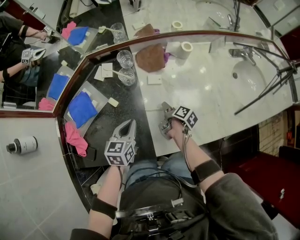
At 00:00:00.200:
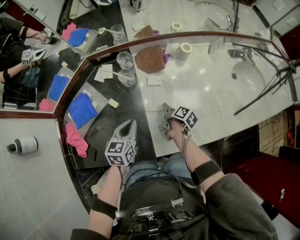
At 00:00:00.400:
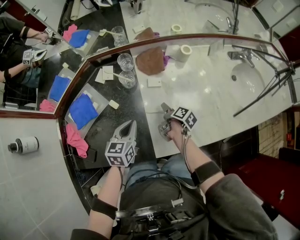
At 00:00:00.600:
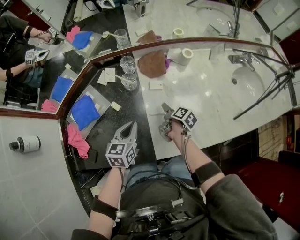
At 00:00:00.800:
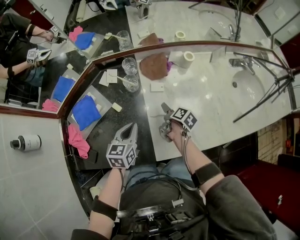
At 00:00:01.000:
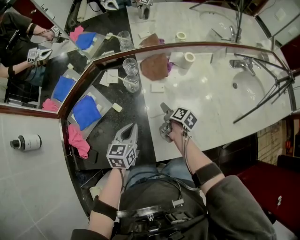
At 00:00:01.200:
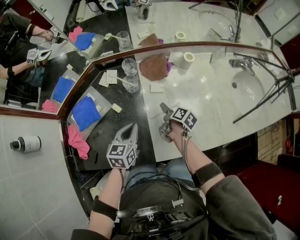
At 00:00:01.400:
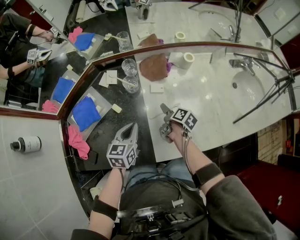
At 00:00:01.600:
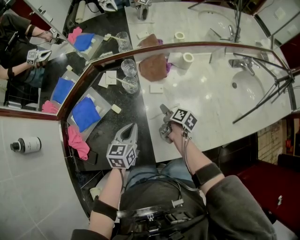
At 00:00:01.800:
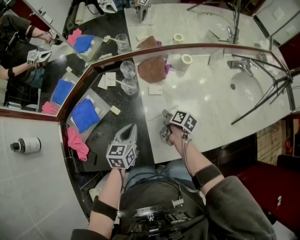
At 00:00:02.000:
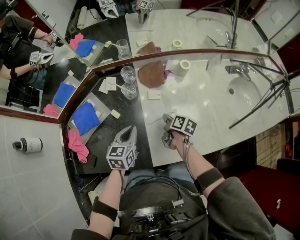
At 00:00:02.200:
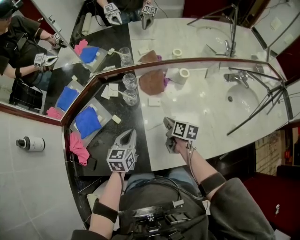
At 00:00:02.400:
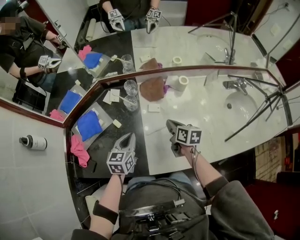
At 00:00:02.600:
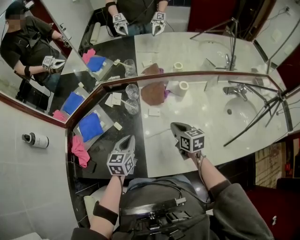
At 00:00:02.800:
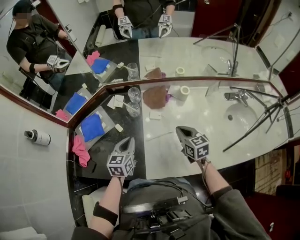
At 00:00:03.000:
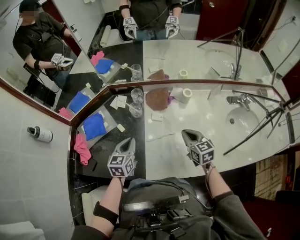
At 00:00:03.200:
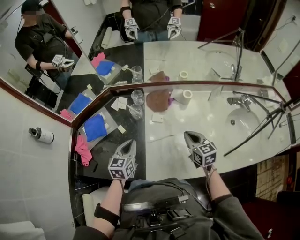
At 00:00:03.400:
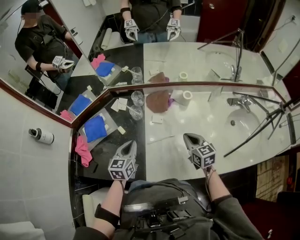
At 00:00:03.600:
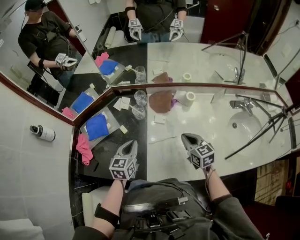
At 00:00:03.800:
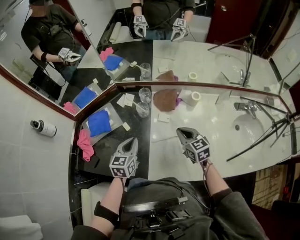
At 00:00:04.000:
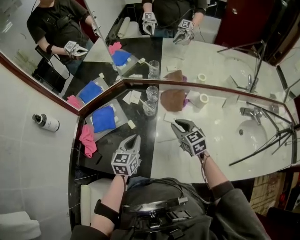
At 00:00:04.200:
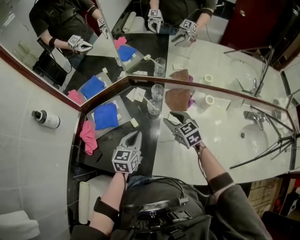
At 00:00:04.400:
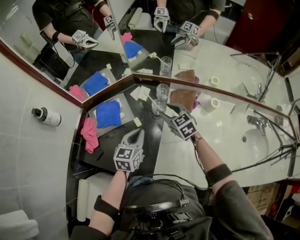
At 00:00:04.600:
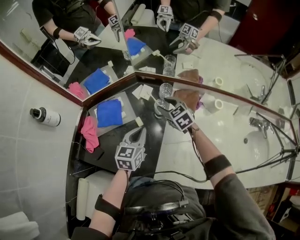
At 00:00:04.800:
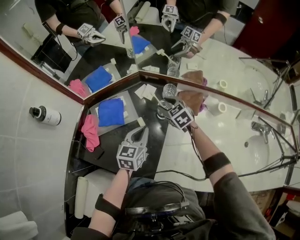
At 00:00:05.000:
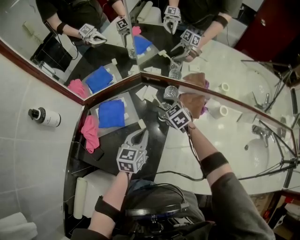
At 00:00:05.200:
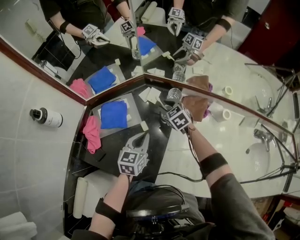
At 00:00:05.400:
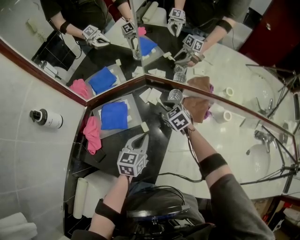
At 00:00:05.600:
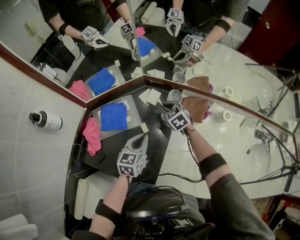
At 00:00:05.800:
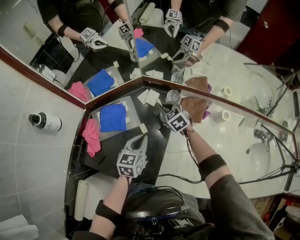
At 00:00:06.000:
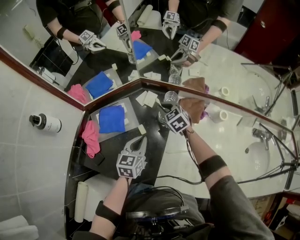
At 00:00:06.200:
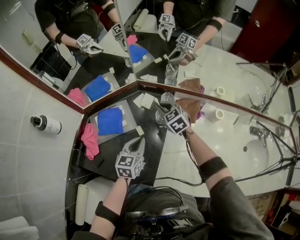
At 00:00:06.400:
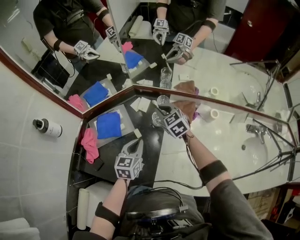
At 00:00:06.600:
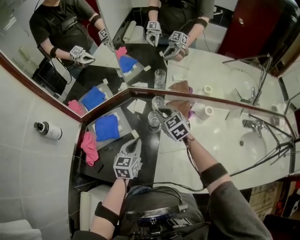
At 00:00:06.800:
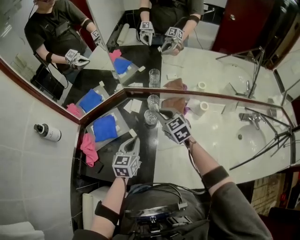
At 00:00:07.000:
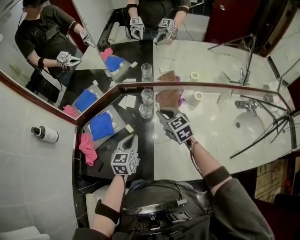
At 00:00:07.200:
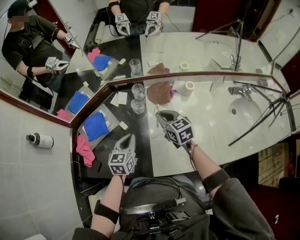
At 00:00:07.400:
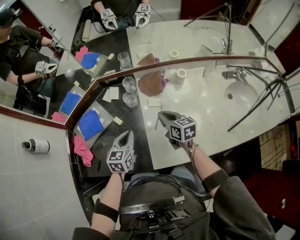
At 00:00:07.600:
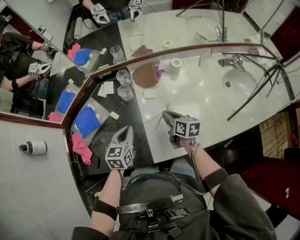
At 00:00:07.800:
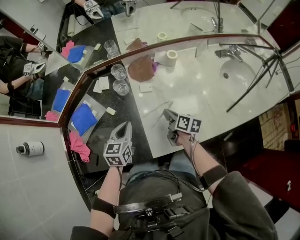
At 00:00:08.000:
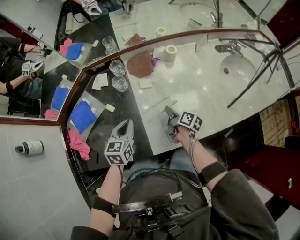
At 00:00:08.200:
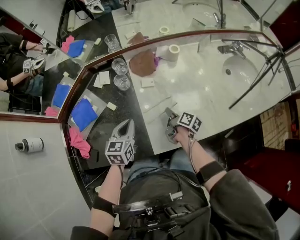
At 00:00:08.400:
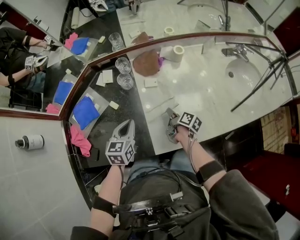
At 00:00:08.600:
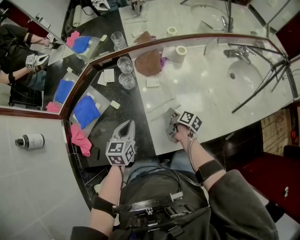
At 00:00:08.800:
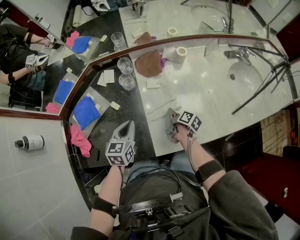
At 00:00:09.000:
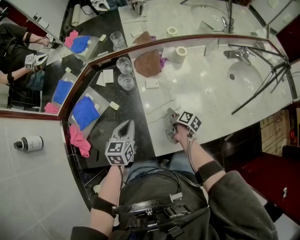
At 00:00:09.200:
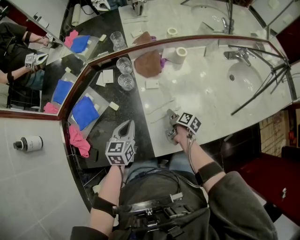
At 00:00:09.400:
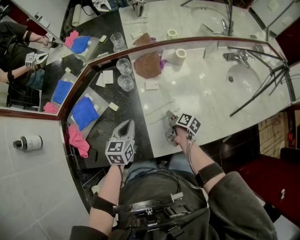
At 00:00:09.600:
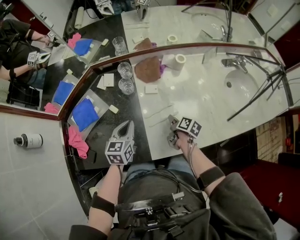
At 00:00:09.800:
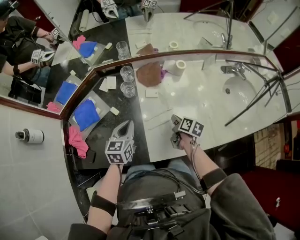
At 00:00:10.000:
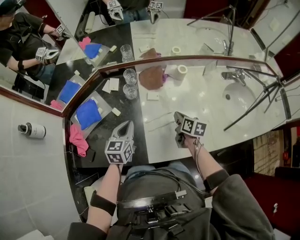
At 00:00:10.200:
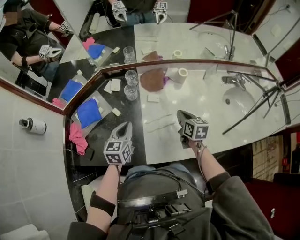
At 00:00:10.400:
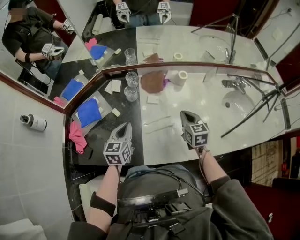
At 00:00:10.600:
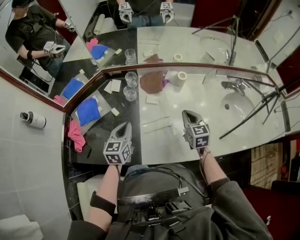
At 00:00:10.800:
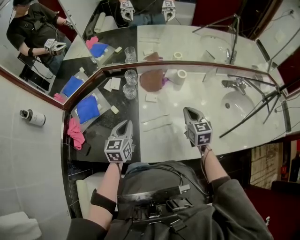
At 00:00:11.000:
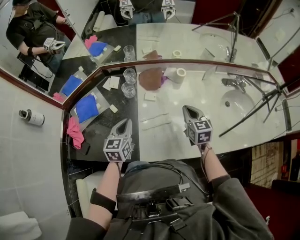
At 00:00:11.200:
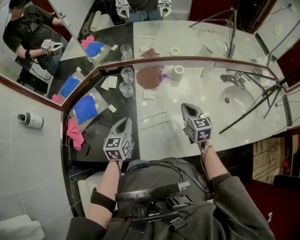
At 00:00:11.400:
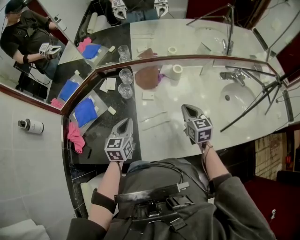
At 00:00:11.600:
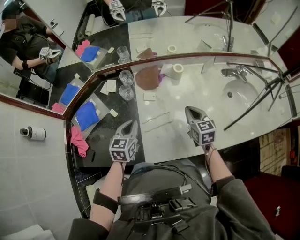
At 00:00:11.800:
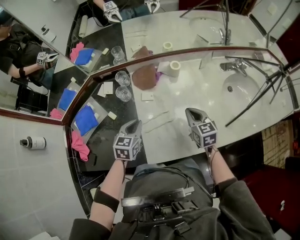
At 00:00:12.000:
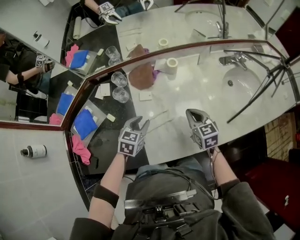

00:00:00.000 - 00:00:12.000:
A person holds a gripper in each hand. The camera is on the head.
00:00:00.000 - 00:00:01.600: The grippers stay close to where they were, moving slightly.
00:00:01.600 - 00:00:03.000: The left gripper is displaced upward by some 5 cm, while the right gripper shifts approximately 20 cm upward and to the right, rolls counterclockwise, seen from behind, by approximately 70 degrees, and closes.
00:00:03.000 - 00:00:04.400: The right gripper shifts approximately 25 cm to the left and forward, changes its angle by roughly 30 degrees, and opens its fingers. The left gripper heads forward and to the left, covering about 5 cm.
00:00:04.400 - 00:00:06.000: The right gripper travels forward by about 10 cm, and closes.
00:00:06.000 - 00:00:07.600: The right gripper heads backward and to the right, covering roughly 30 cm, and rolls clockwise, seen from behind, by about 60 degrees, while the left gripper heads backward and to the right, covering about 10 cm, and turns by approximately 20 degrees.
00:00:07.600 - 00:00:09.000: The right gripper goes roughly 15 cm downward, rolls clockwise, seen from behind, by approximately 40 degrees, and opens its fingers.
00:00:09.000 - 00:00:10.400: The left gripper goes roughly 5 cm upward. Meanwhile the right gripper moves upward, about 20 cm, rolls counterclockwise, seen from behind, by approximately 70 degrees, and closes its fingers.
00:00:10.400 - 00:00:12.000: The right gripper travels to the right by about 5 cm. The left gripper moves to the right and downward, roughly 15 cm, changes its angle by some 30 degrees, and opens.

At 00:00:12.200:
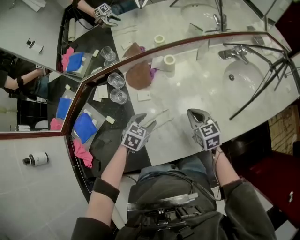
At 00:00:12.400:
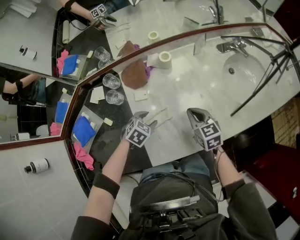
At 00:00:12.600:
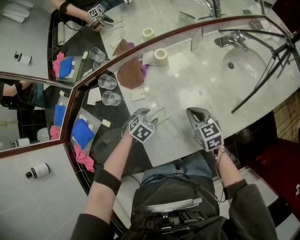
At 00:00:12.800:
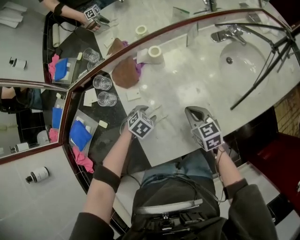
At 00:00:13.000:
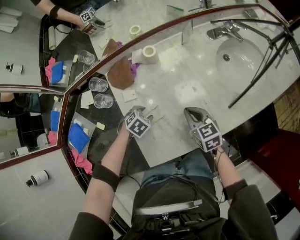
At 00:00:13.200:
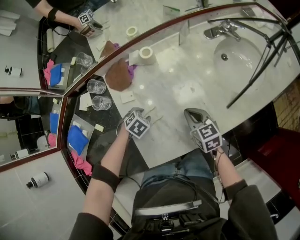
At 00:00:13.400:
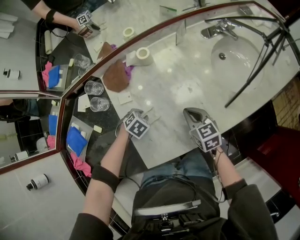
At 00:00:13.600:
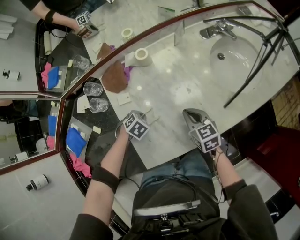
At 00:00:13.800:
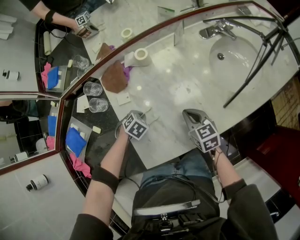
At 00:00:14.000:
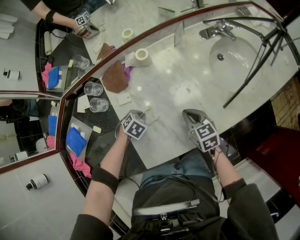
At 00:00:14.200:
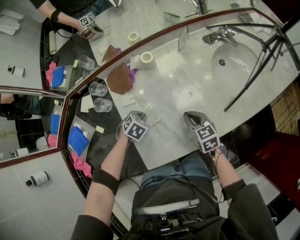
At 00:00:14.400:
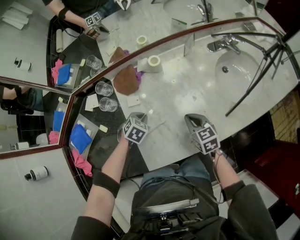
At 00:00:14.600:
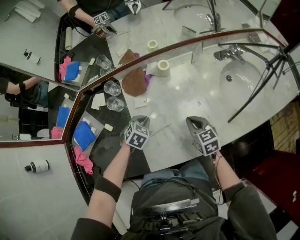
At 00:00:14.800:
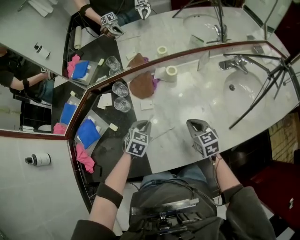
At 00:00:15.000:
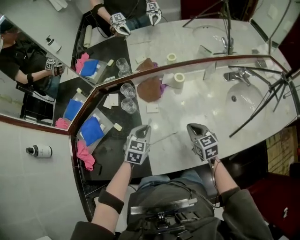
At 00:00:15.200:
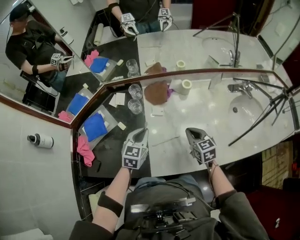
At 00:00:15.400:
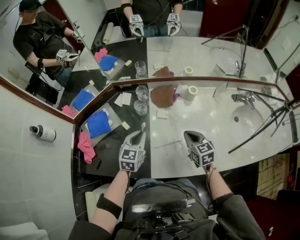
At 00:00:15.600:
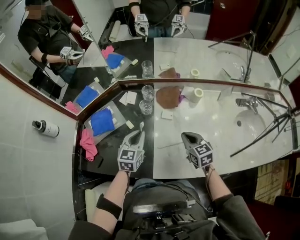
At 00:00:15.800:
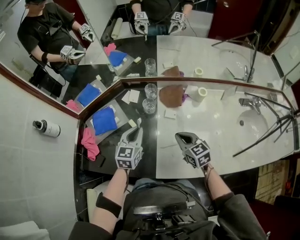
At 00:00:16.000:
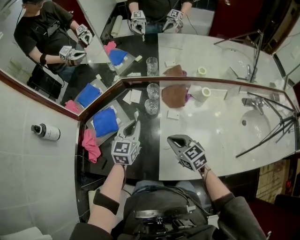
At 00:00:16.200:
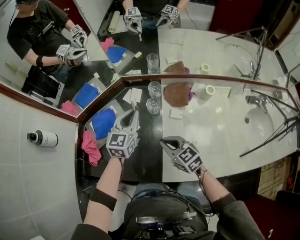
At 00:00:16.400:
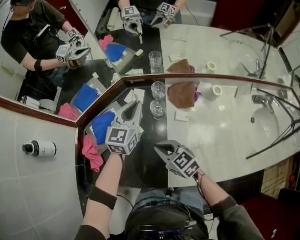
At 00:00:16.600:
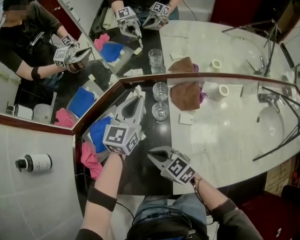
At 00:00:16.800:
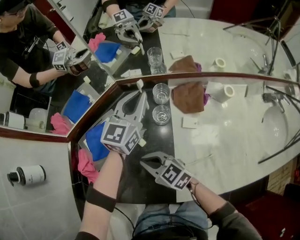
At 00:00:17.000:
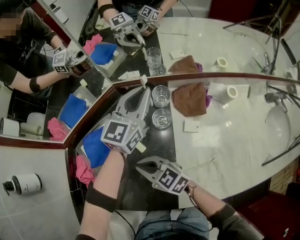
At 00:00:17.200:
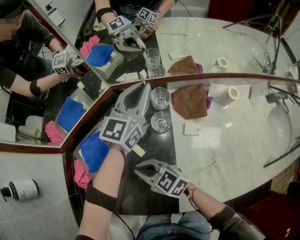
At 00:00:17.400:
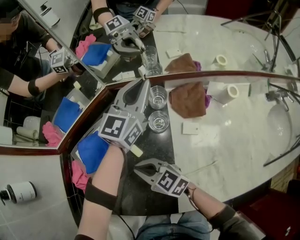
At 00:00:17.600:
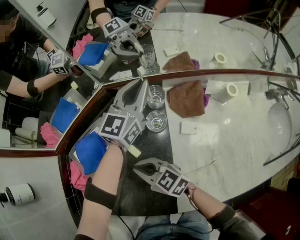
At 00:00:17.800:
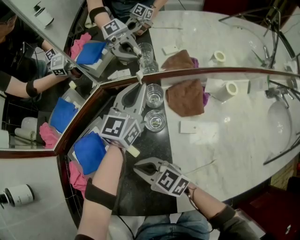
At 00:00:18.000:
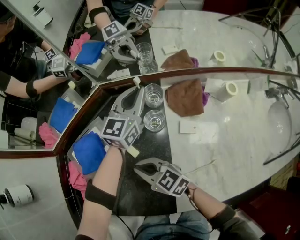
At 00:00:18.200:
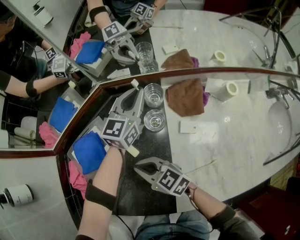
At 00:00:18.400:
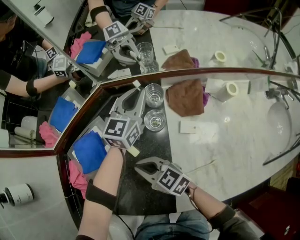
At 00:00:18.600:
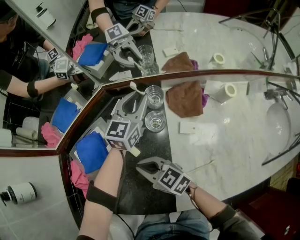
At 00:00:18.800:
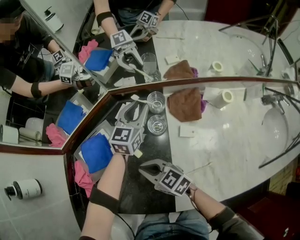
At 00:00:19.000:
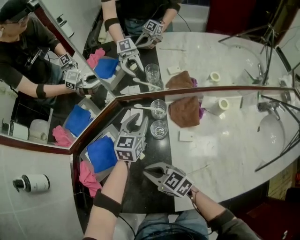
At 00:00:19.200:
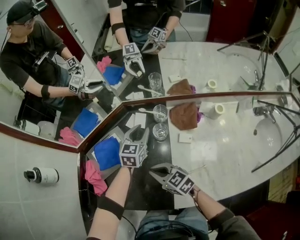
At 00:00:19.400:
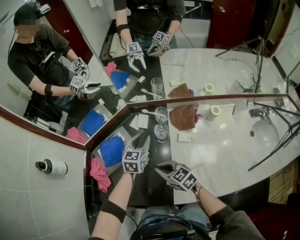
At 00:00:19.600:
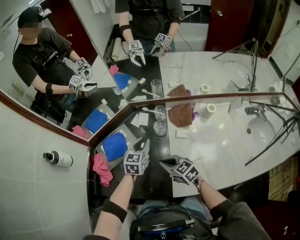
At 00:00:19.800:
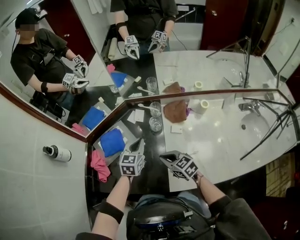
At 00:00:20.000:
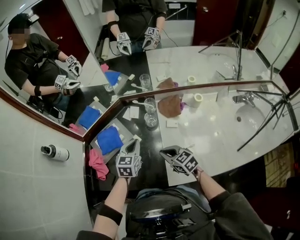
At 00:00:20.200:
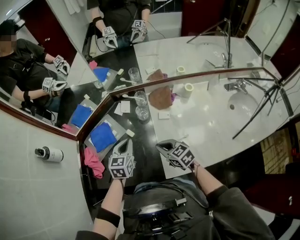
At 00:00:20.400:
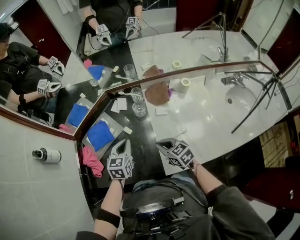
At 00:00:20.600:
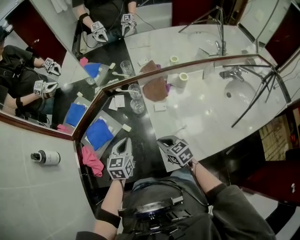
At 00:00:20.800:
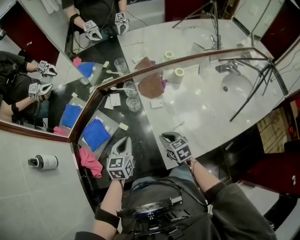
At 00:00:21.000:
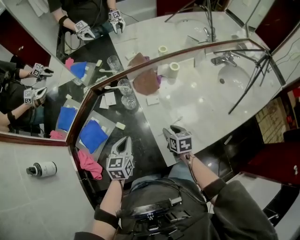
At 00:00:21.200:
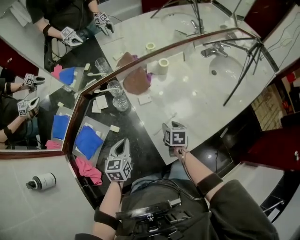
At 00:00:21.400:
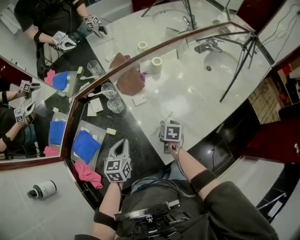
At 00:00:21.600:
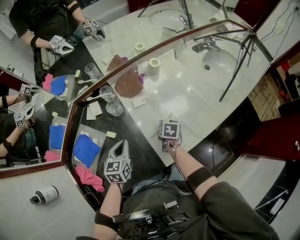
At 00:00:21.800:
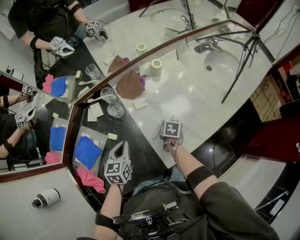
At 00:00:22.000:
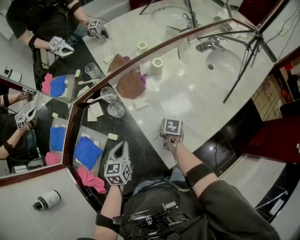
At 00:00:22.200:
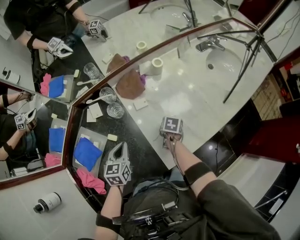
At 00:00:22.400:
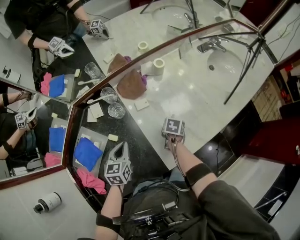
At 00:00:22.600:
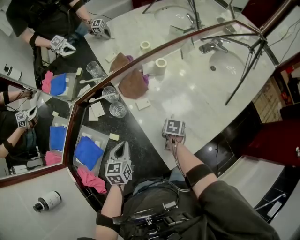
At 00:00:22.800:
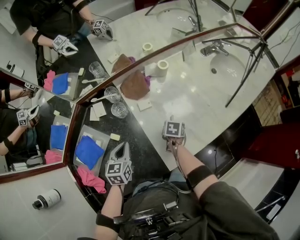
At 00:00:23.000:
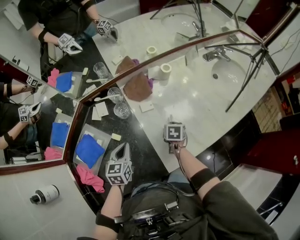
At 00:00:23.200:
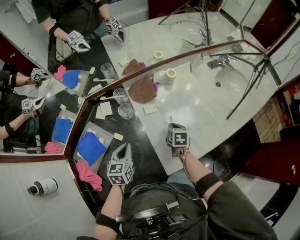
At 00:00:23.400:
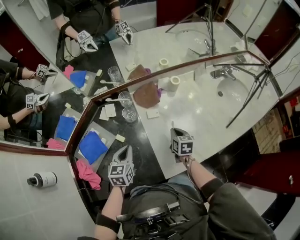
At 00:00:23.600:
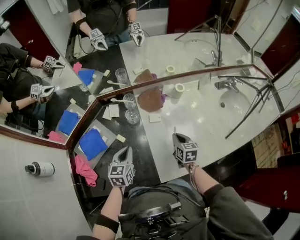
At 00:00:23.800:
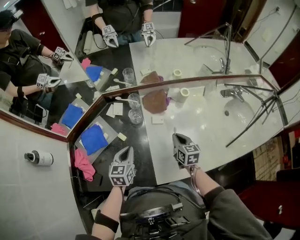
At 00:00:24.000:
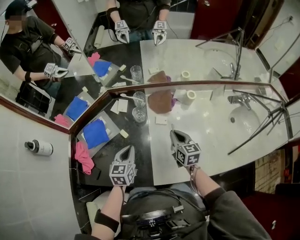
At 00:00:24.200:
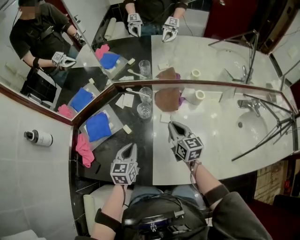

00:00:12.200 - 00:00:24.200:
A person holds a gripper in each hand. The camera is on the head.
00:00:12.200 - 00:00:13.800: The right gripper moves about 10 cm. The left gripper travels downward by some 15 cm, changes its angle by about 30 degrees, and closes its fingers.
00:00:13.800 - 00:00:15.200: The left gripper heads upward, covering some 20 cm, and points its fingers roughly 50 degrees further upward; the right gripper ends up roughly 15 cm from where it was.
00:00:15.200 - 00:00:16.600: The right gripper goes about 35 cm to the left, and rotates approximately 40 degrees. Meanwhile the left gripper is displaced forward and to the left by roughly 25 cm, and changes its angle by about 20 degrees.
00:00:16.600 - 00:00:18.200: The right gripper travels downward by about 5 cm, while the left gripper shifts about 15 cm downward, forward and to the right.
00:00:18.200 - 00:00:19.800: The left gripper is displaced backward and to the left by approximately 25 cm, turns by some 20 degrees, and opens and closes again, while the right gripper is displaced backward, upward and to the right by some 15 cm.
00:00:19.800 - 00:00:21.200: The right gripper moves about 20 cm, swivels some 70 degrees, and opens its fingers. The left gripper ends up approximately 10 cm from where it was.
00:00:21.200 - 00:00:22.600: The right gripper is displaced downward by about 5 cm, swivels roughly 30 degrees, and closes up.
00:00:22.600 - 00:00:24.200: The right gripper travels upward by roughly 20 cm, and angles its fingers upward, by some 50 degrees. Meanwhile the left gripper changes place by approximately 5 cm, and rotates approximately 30 degrees.
